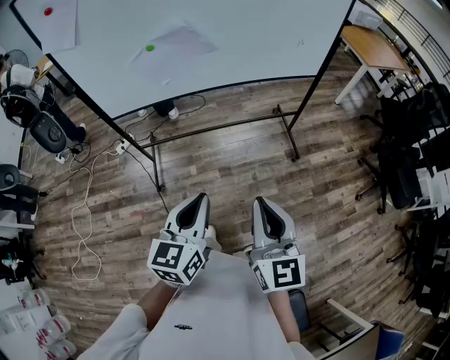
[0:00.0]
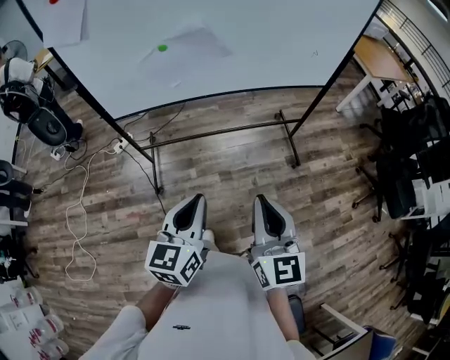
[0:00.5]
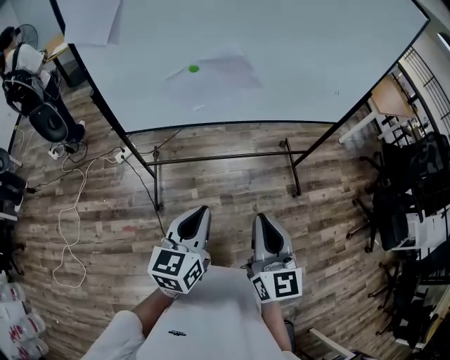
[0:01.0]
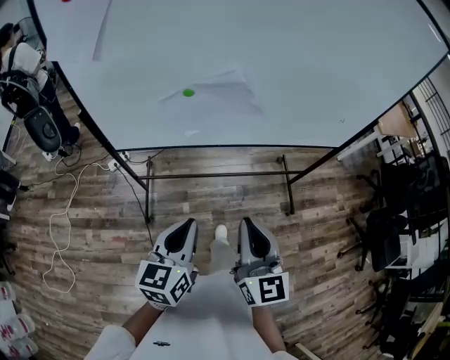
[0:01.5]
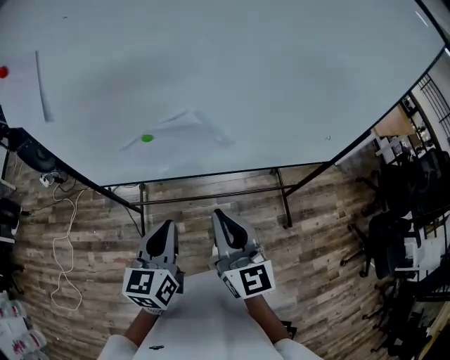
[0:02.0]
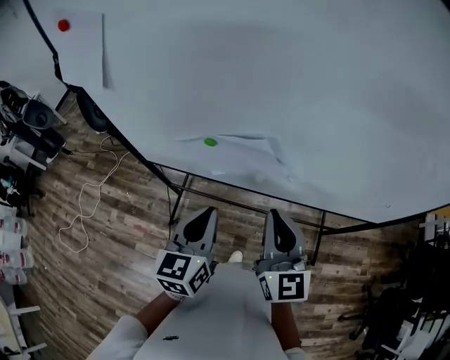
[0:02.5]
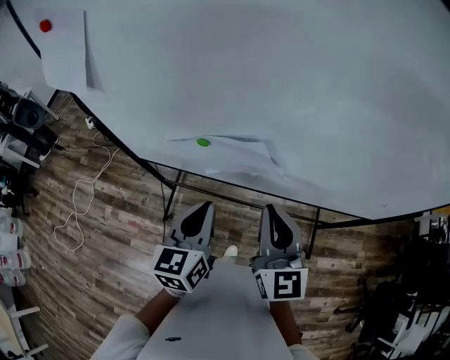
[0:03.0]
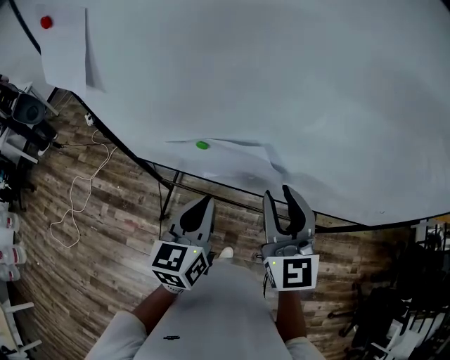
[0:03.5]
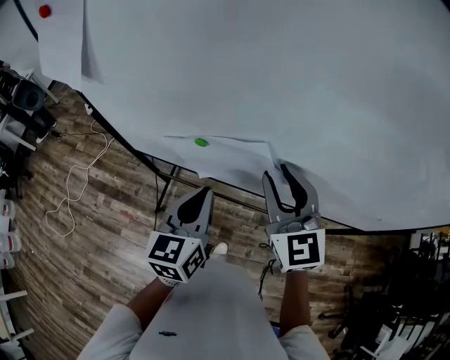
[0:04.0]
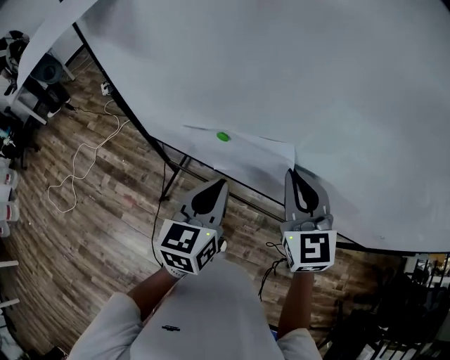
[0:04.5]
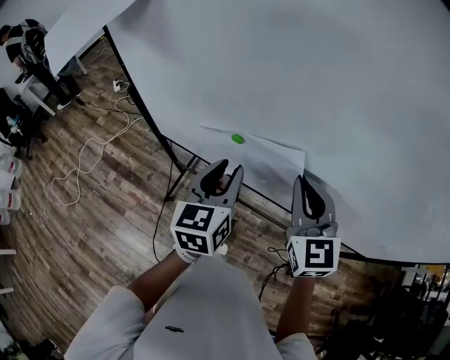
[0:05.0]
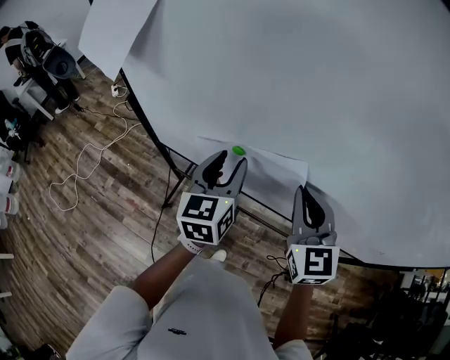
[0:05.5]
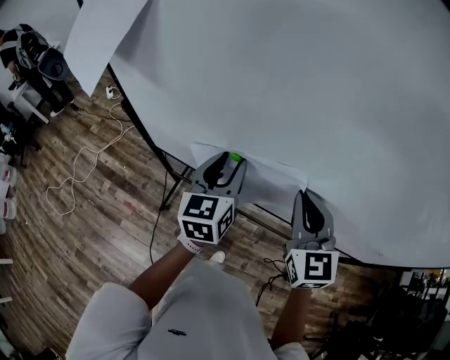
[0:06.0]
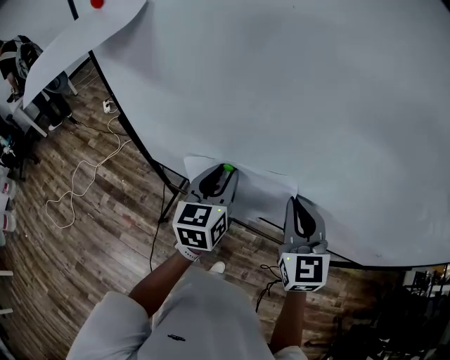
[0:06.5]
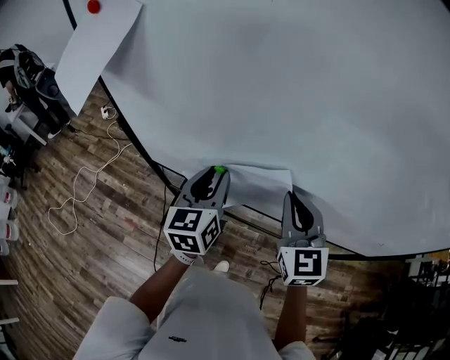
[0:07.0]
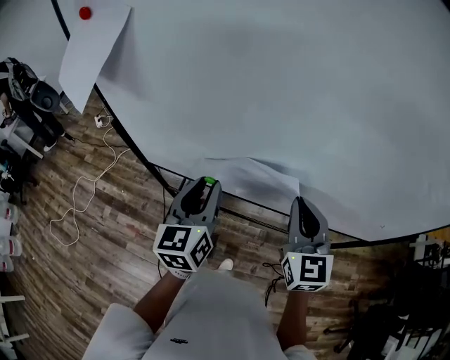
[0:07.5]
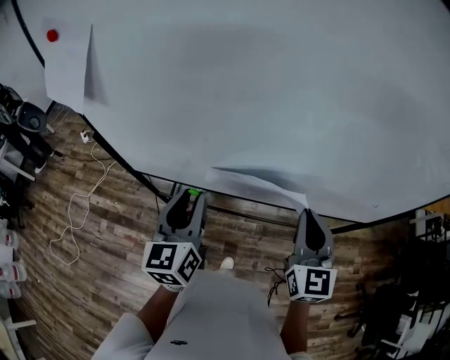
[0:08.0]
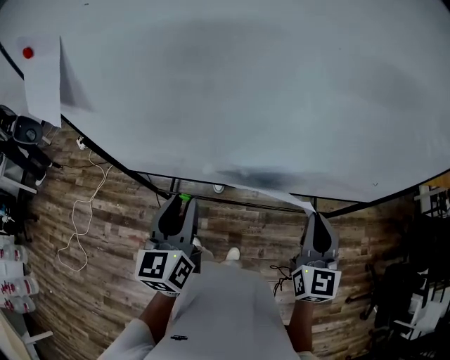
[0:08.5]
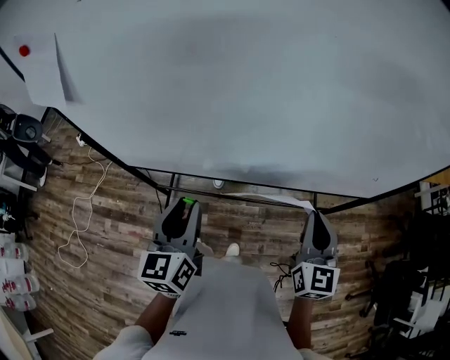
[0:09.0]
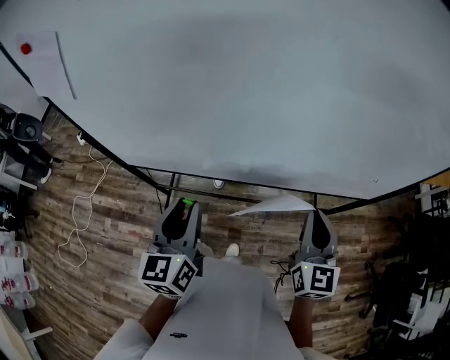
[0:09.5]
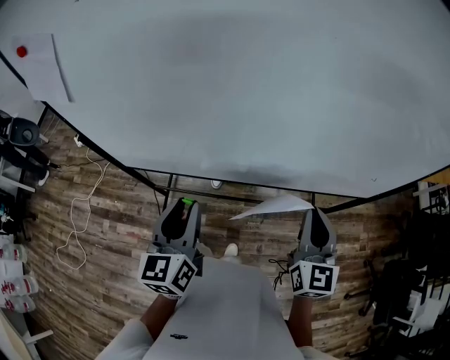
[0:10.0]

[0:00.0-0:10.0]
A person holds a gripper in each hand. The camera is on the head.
0:00.0 to 0:02.0: Both grippers move forward, approximately 30 cm.
0:02.0 to 0:04.0: Both grippers move forward, approximately 15 cm. The right gripper rotates approximately 30 degrees, and opens its fingers.
0:04.0 to 0:06.0: The left gripper heads forward, covering approximately 10 cm, and opens up. The right gripper closes.
0:06.0 to 0:08.0: The left gripper is displaced backward by roughly 10 cm. The right gripper moves backward and to the right, roughly 15 cm, and rotates about 20 degrees.
0:08.0 to 0:10.0: The right gripper heads to the right, covering some 5 cm. Meanwhile the left gripper ends up about 5 cm from where it was.

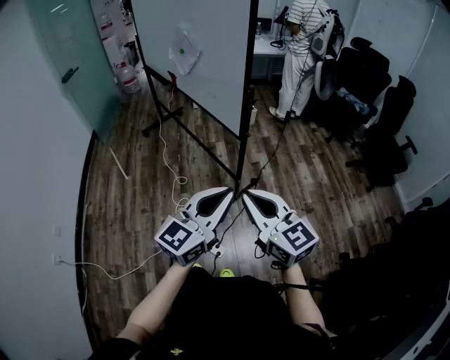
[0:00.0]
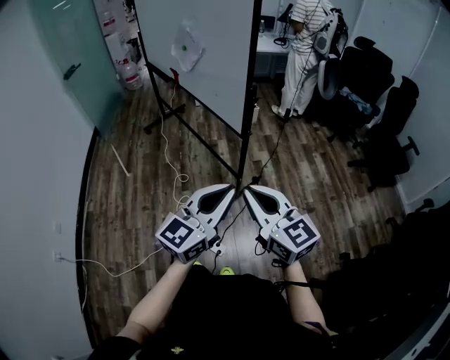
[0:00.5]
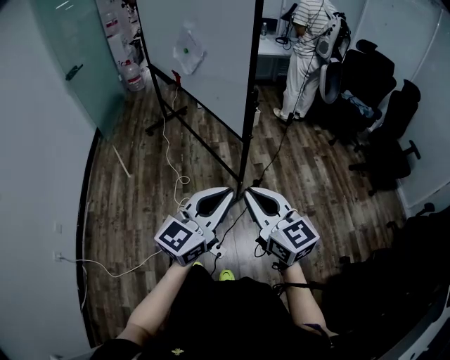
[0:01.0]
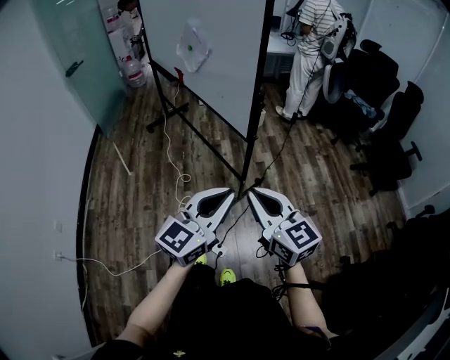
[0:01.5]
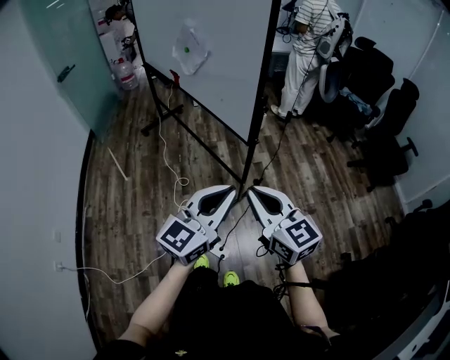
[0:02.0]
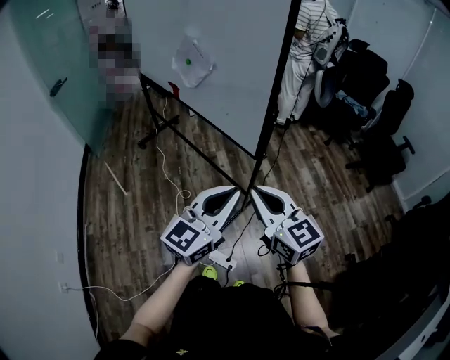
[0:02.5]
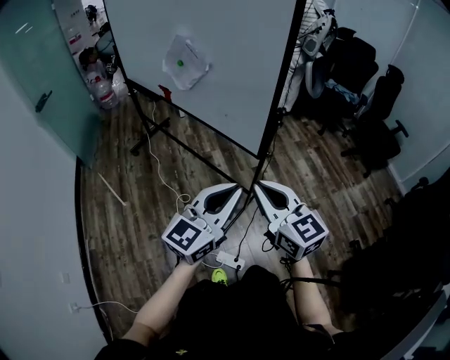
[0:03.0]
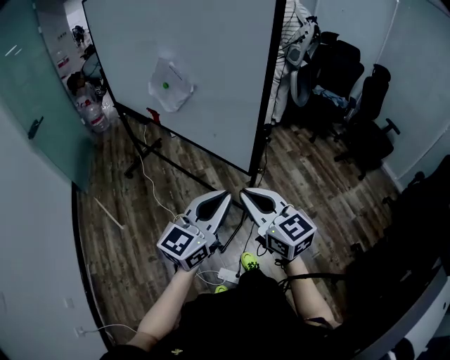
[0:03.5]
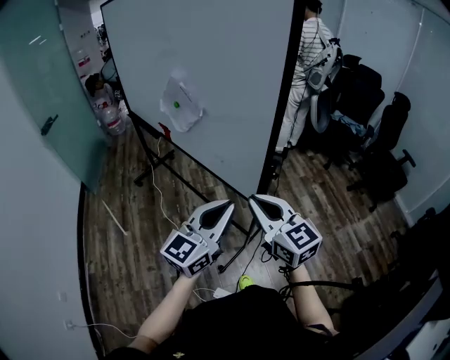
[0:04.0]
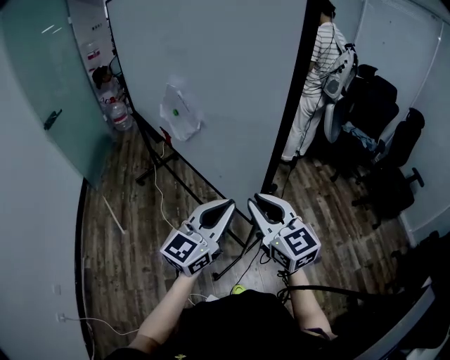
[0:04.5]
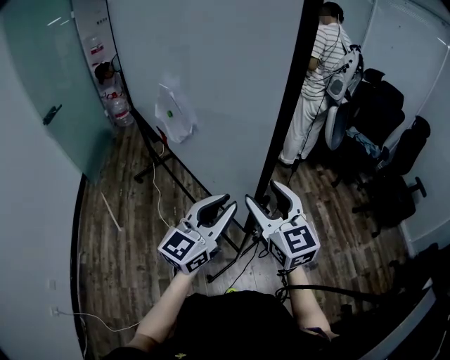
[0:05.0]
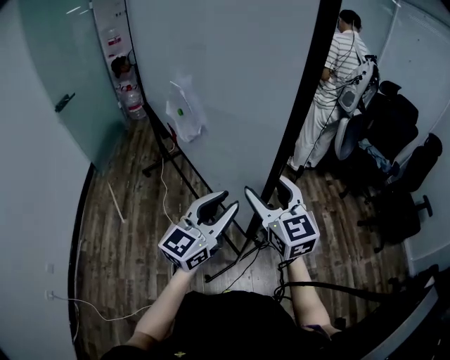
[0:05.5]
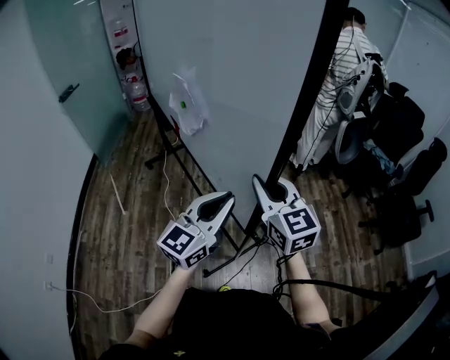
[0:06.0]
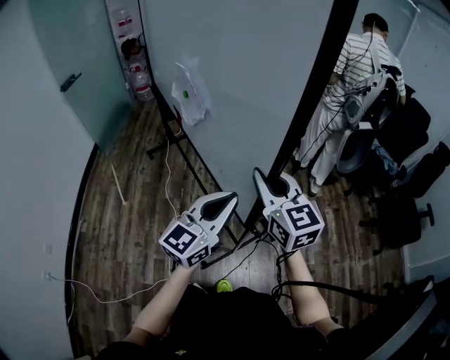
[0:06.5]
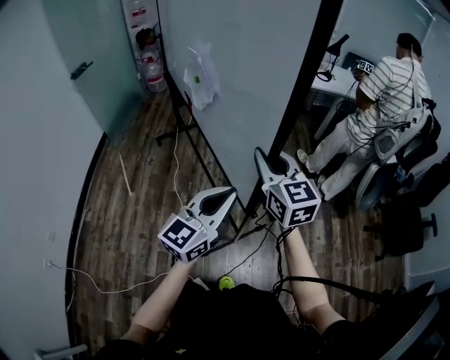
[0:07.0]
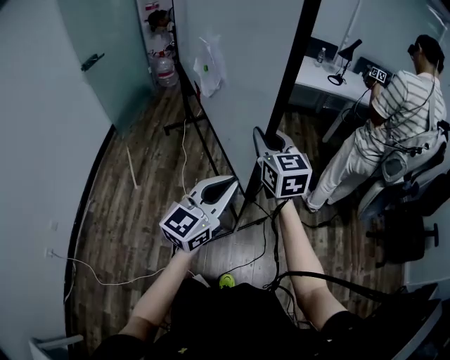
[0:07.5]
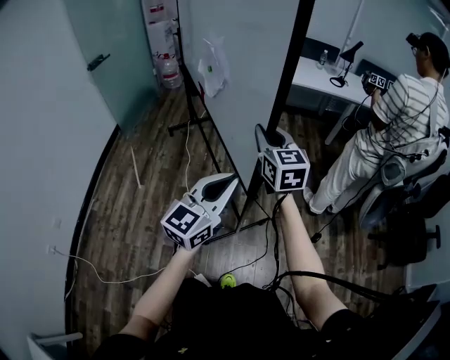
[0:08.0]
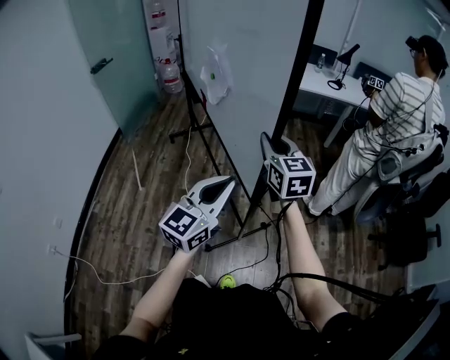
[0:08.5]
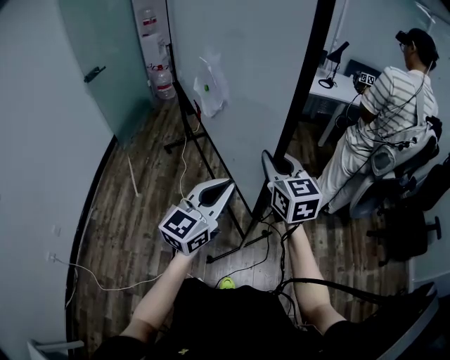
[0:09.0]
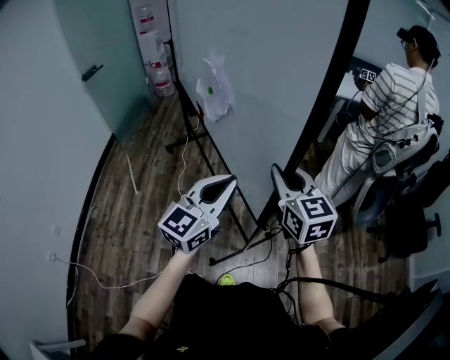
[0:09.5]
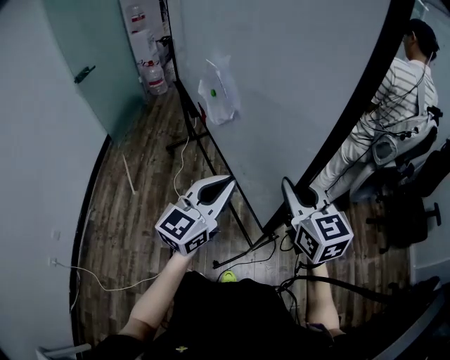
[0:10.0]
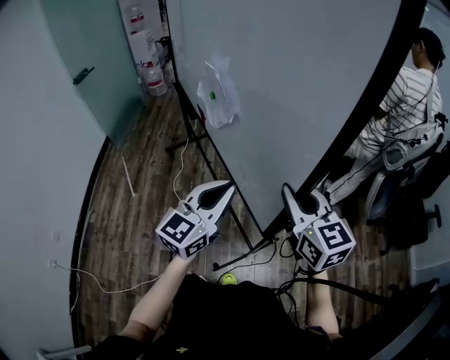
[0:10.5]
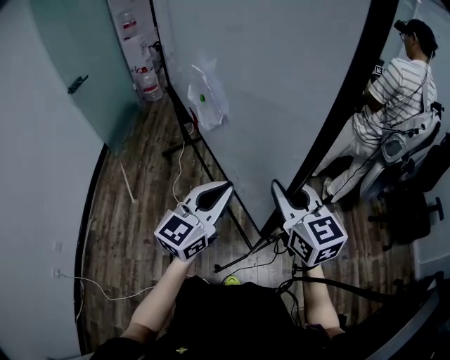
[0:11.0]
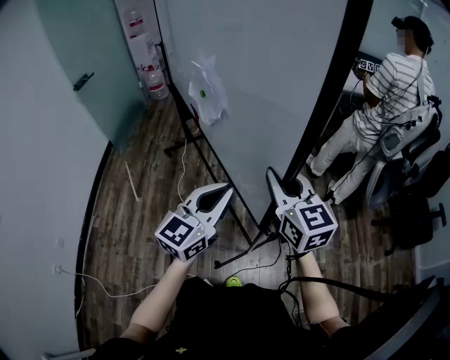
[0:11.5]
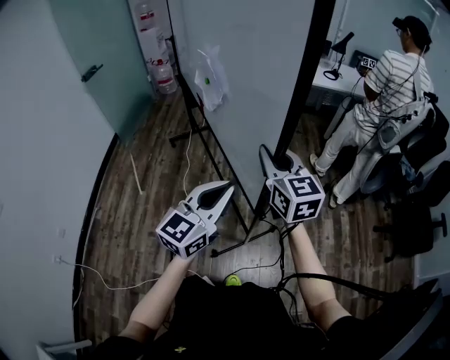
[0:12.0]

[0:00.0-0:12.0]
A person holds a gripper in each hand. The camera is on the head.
0:00.0 to 0:02.0: Both grippers move forward, some 5 cm.
0:02.0 to 0:04.0: The grippers both shift forward by about 20 cm.
0:04.0 to 0:06.0: Both grippers travel together forward, some 15 cm. The right gripper opens and closes again; the left gripper opens, then closes once more.
0:06.0 to 0:08.0: The right gripper shifts some 15 cm forward and to the left, while the left gripper is displaced to the left by some 5 cm.
0:08.0 to 0:10.0: The right gripper is displaced backward and to the right by approximately 25 cm. Meanwhile the left gripper ends up approximately 5 cm from where it was.
0:10.0 to 0:12.0: The right gripper goes about 15 cm forward and to the left.

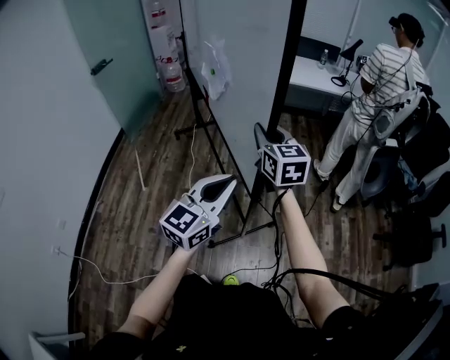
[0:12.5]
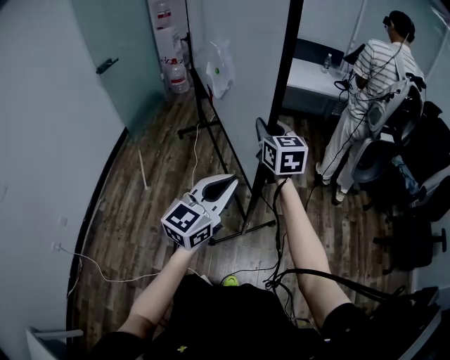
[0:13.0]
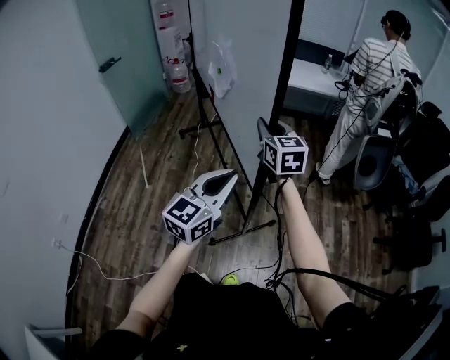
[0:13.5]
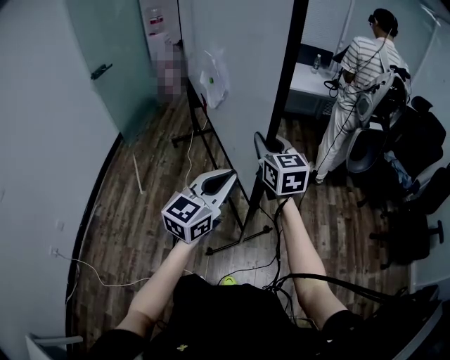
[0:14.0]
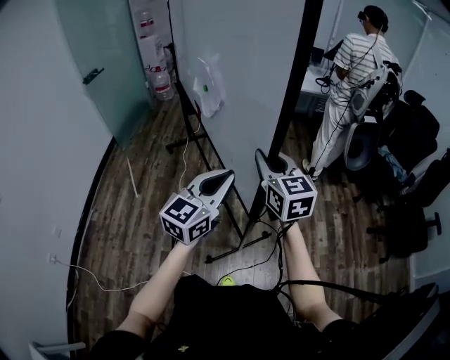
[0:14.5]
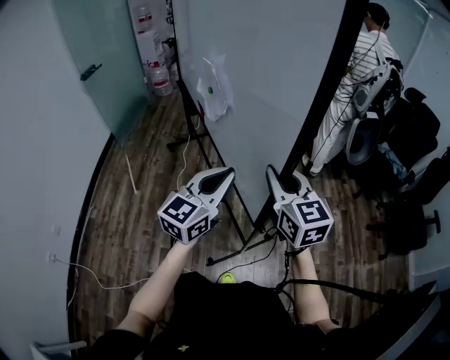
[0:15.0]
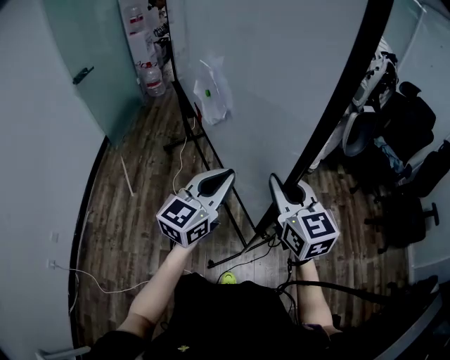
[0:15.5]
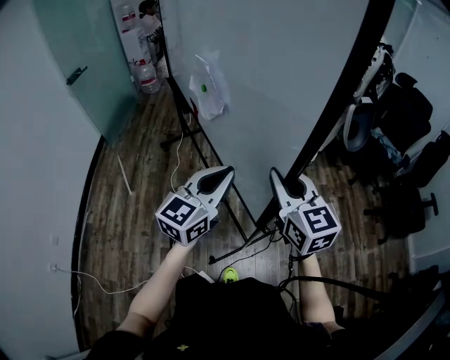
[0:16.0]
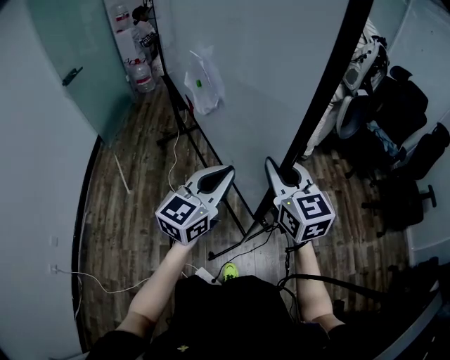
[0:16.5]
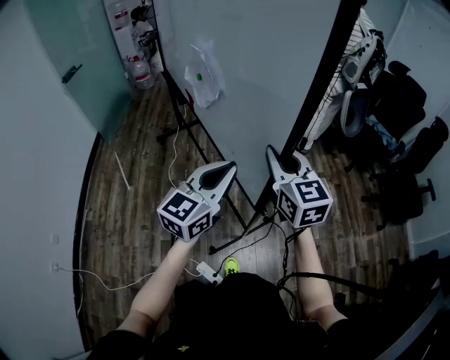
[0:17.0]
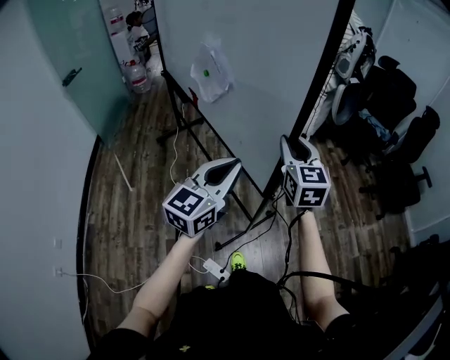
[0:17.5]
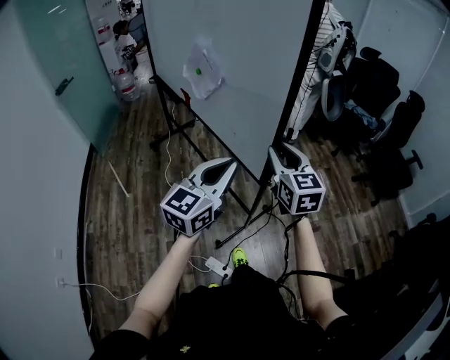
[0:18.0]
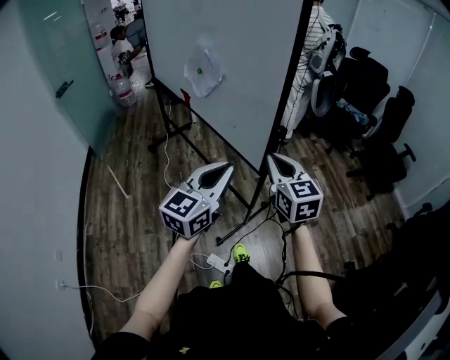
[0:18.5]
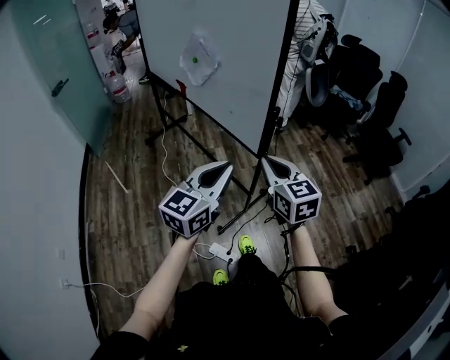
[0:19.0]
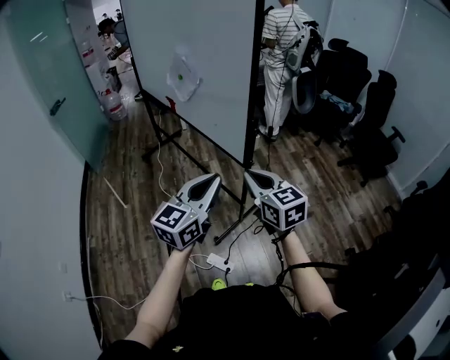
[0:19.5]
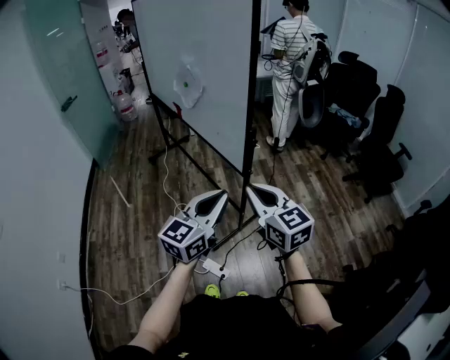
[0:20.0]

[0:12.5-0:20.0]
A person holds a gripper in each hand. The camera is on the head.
0:12.5 to 0:14.5: The right gripper goes roughly 10 cm backward and to the right.
0:14.5 to 0:16.5: The right gripper shifts about 5 cm backward.
0:16.5 to 0:18.0: The two grippers go about 10 cm backward.
0:18.0 to 0:20.0: The right gripper goes approximately 20 cm backward; the left gripper shifts about 15 cm backward and to the right.
